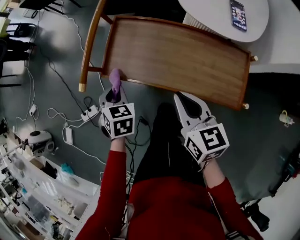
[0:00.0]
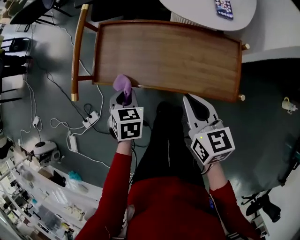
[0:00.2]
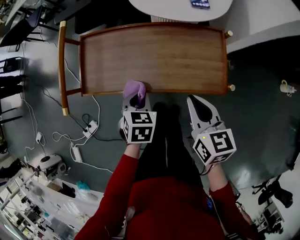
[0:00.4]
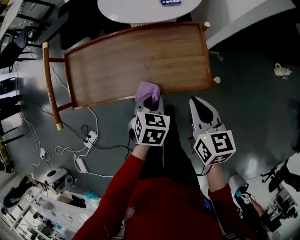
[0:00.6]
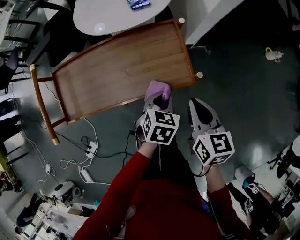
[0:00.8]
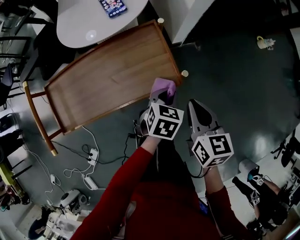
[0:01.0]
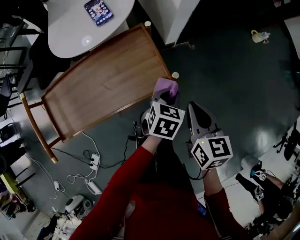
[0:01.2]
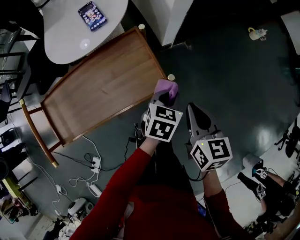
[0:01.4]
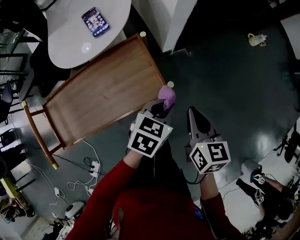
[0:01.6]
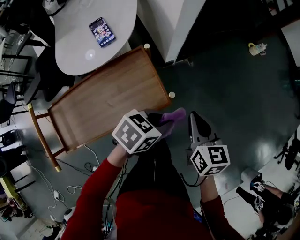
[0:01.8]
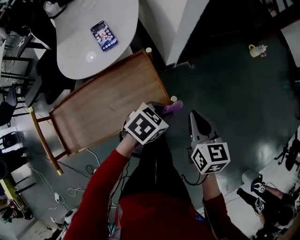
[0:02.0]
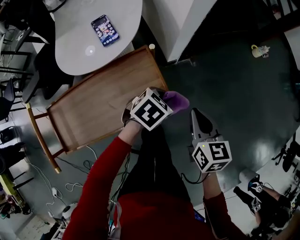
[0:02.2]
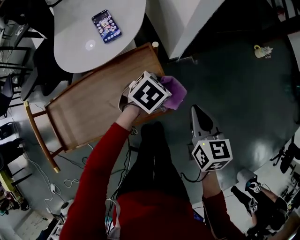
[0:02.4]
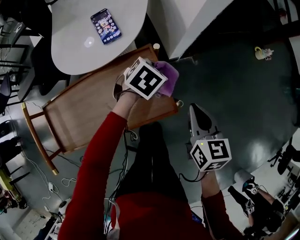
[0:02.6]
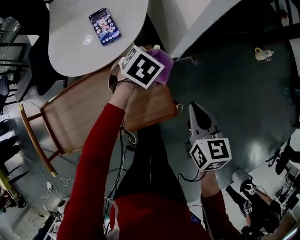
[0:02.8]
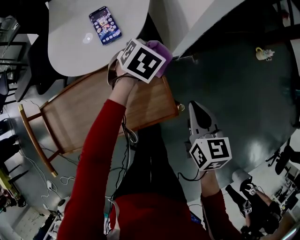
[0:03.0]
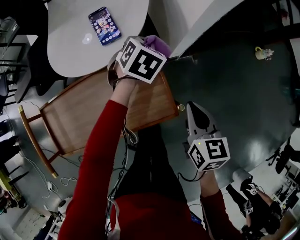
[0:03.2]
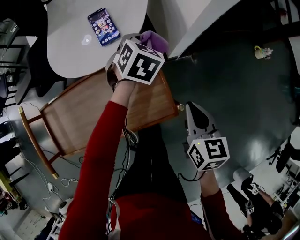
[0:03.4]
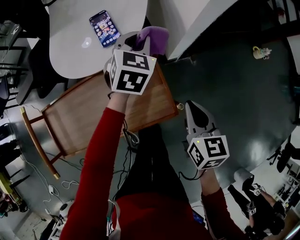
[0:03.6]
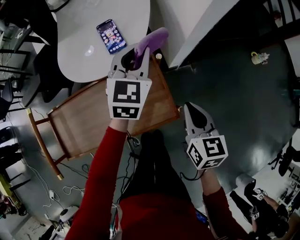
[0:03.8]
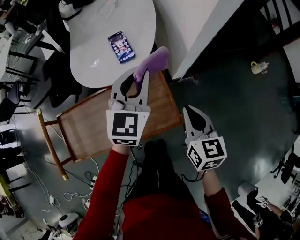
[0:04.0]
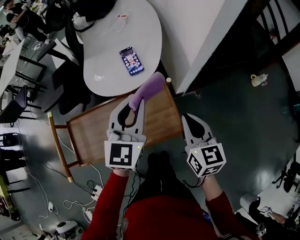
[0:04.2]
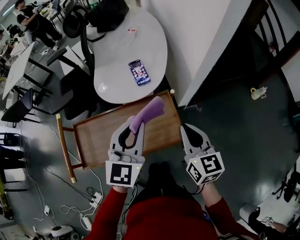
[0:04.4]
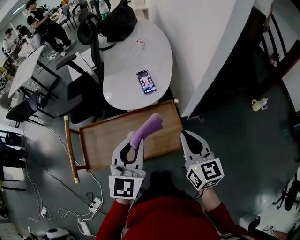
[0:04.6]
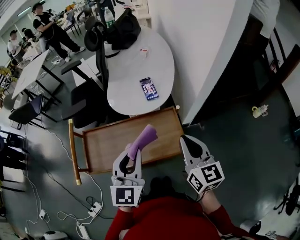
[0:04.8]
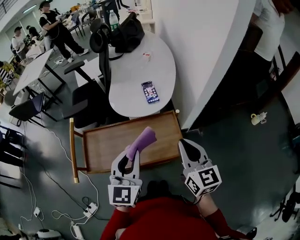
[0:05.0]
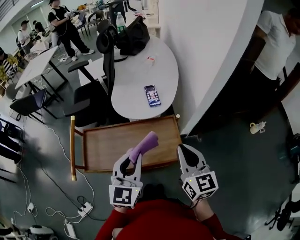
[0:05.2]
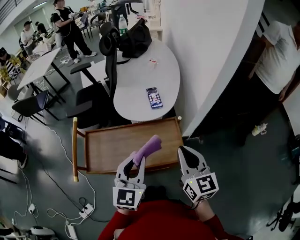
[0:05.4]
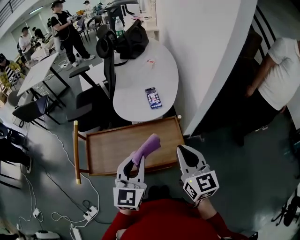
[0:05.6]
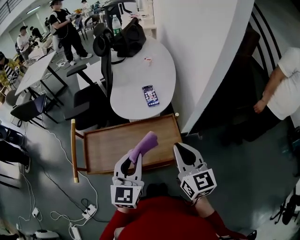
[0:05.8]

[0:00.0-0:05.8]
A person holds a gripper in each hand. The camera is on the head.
0:00.0 to 0:01.4: The left gripper moves about 50 cm, and swivels some 70 degrees; the right gripper ends up about 35 cm from where it was, and swivels about 50 degrees.
0:01.4 to 0:02.8: The right gripper ends up about 10 cm from where it was, while the left gripper changes place by about 25 cm, and changes its angle by approximately 20 degrees.
0:02.8 to 0:04.4: The left gripper goes about 35 cm upward, backward and to the left, and angles its fingers upward, by about 60 degrees; the right gripper heads upward and to the left, covering about 15 cm, and turns by approximately 20 degrees.
0:04.4 to 0:05.8: The right gripper moves upward, approximately 5 cm; the left gripper heads backward and to the left, covering about 10 cm.

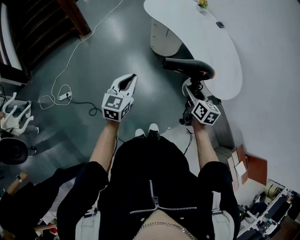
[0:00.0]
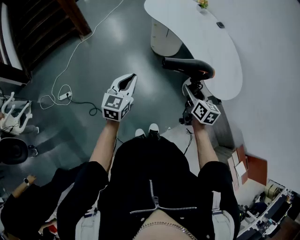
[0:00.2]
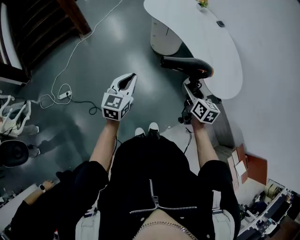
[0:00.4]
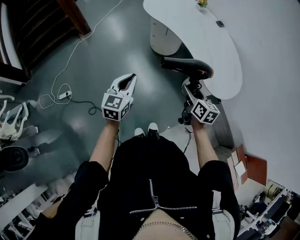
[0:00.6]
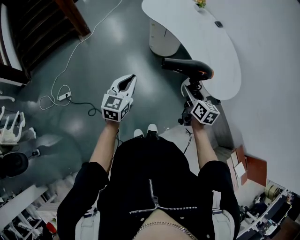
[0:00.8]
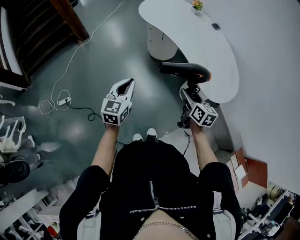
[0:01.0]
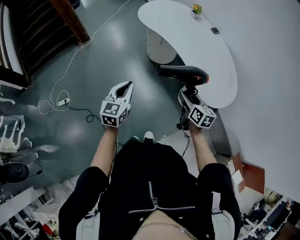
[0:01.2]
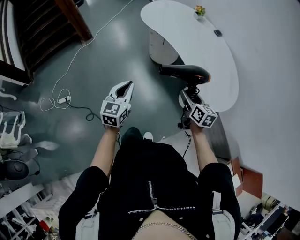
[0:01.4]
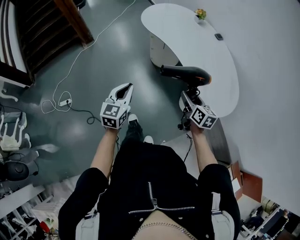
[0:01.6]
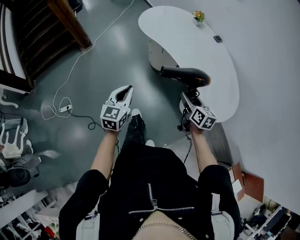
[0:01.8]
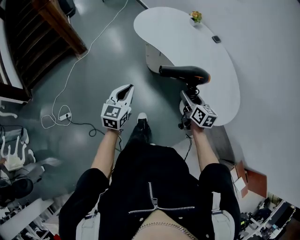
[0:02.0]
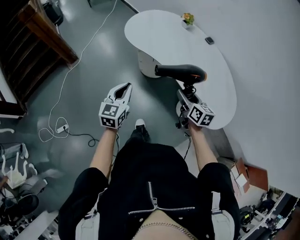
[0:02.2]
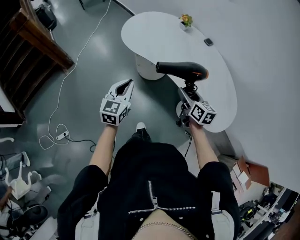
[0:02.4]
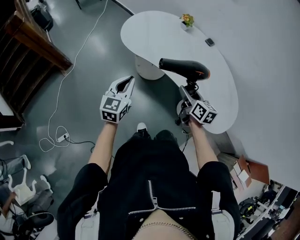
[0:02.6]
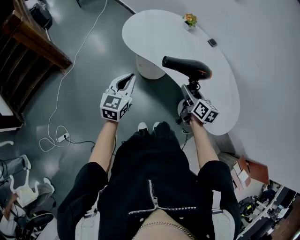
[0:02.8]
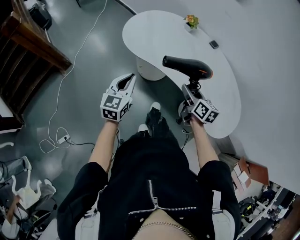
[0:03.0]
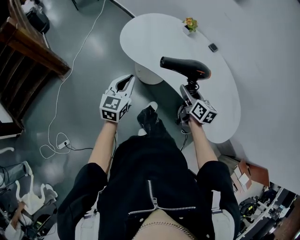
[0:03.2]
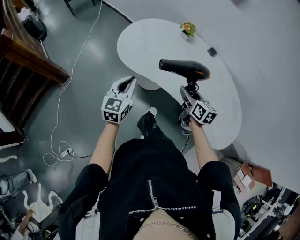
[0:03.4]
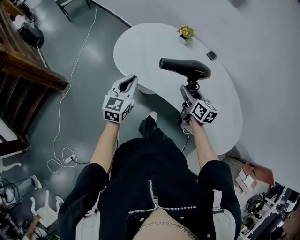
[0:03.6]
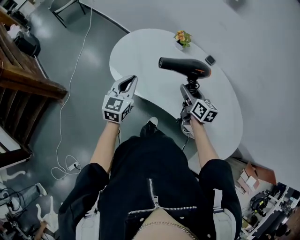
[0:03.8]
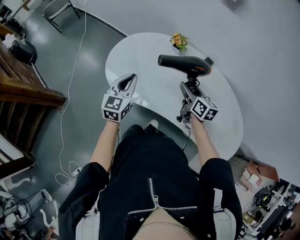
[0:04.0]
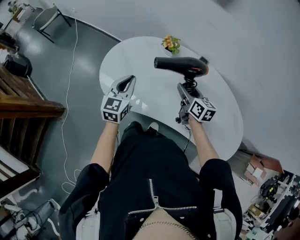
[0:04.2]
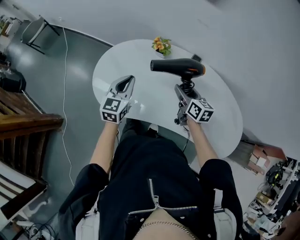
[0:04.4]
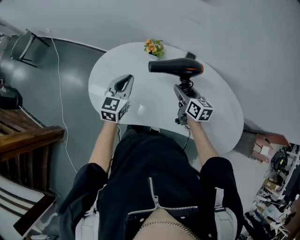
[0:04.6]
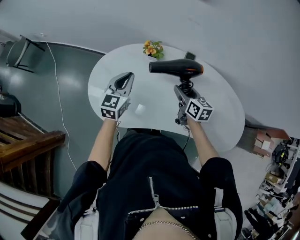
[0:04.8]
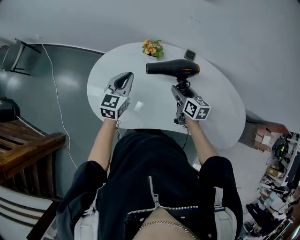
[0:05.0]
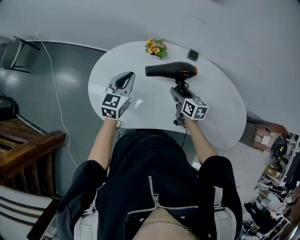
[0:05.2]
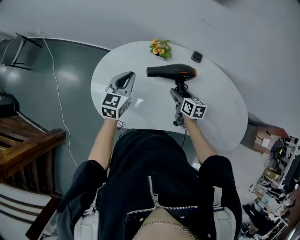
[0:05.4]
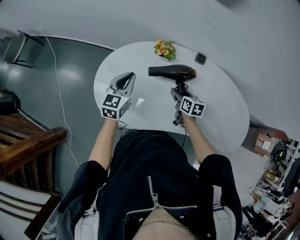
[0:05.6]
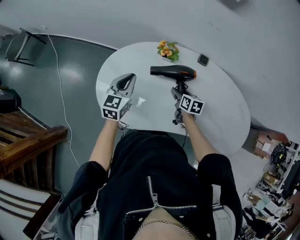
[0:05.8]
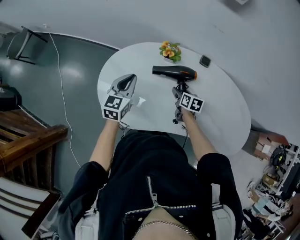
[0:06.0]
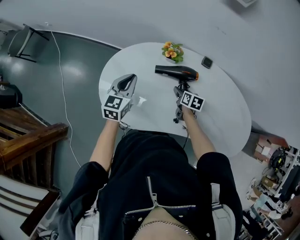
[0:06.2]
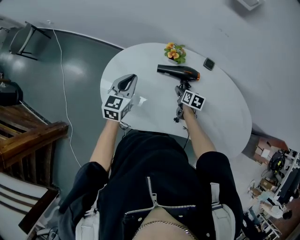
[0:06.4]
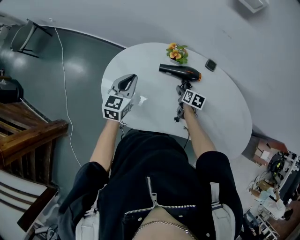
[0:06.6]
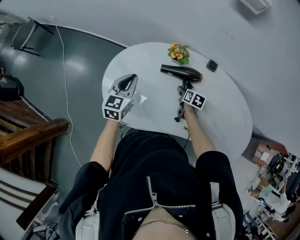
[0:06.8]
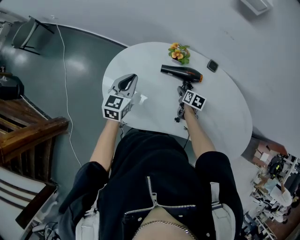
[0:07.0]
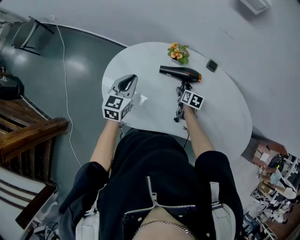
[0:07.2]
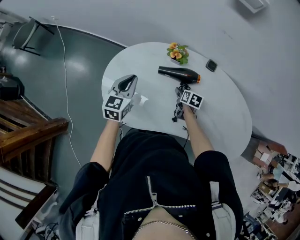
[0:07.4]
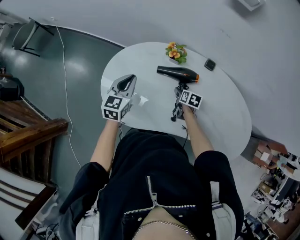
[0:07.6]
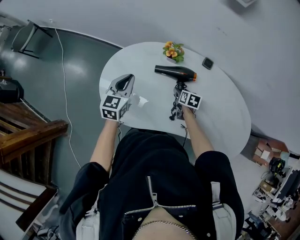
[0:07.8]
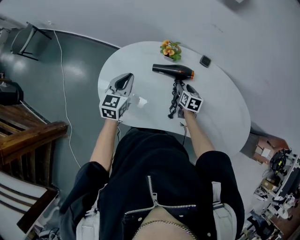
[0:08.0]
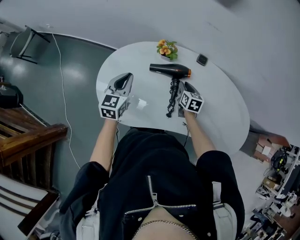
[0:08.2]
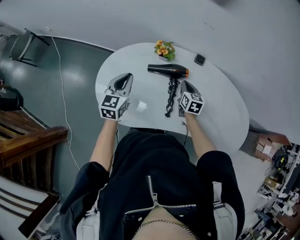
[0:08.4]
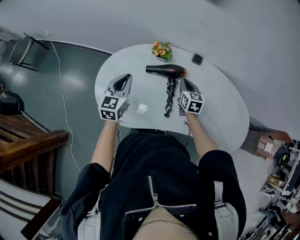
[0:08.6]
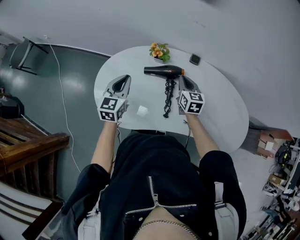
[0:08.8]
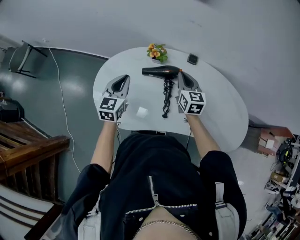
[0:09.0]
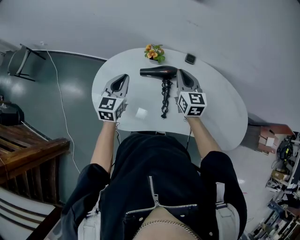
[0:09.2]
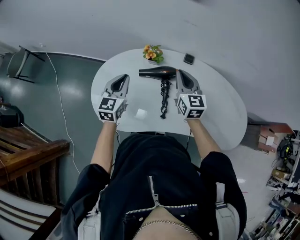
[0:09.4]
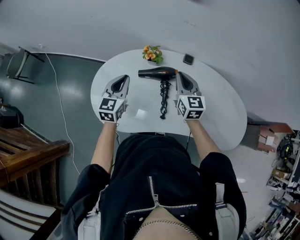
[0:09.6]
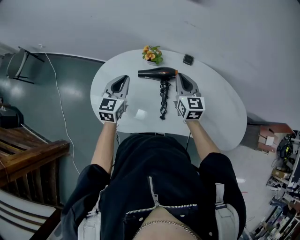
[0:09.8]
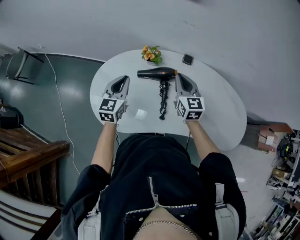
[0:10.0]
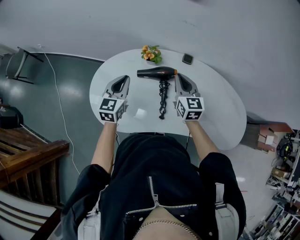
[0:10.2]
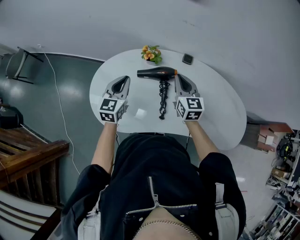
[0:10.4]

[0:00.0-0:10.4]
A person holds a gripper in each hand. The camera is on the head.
0:00.0 to 0:01.4: The right gripper goes about 10 cm forward and to the right; the left gripper changes place by about 5 cm.
0:01.4 to 0:03.0: Both grippers travel together forward, roughly 30 cm.
0:03.0 to 0:04.4: The grippers both shift forward by some 35 cm. The left gripper rotates about 20 degrees.
0:04.4 to 0:06.0: The right gripper travels downward by approximately 15 cm, and rotates approximately 30 degrees. The left gripper shifts roughly 10 cm forward and to the left.
0:06.0 to 0:07.4: The grippers stay close to where they were, moving slightly.
0:07.4 to 0:09.0: The right gripper is displaced upward by about 25 cm, points its fingers about 40 degrees further upward, and closes its fingers; the left gripper changes place by roughly 5 cm.
0:09.0 to 0:10.4: There are only small adjustments of the grippers.

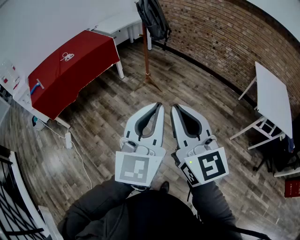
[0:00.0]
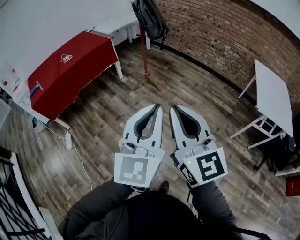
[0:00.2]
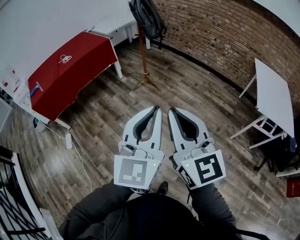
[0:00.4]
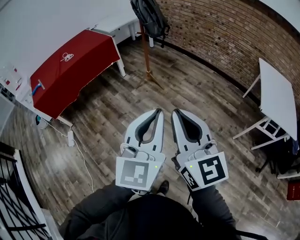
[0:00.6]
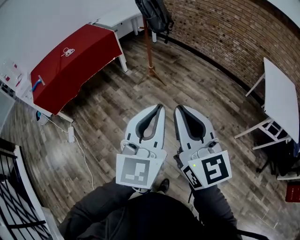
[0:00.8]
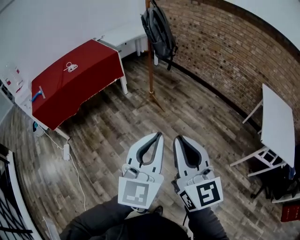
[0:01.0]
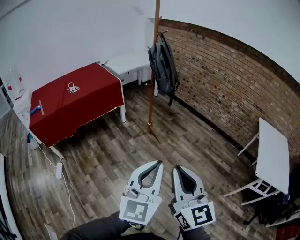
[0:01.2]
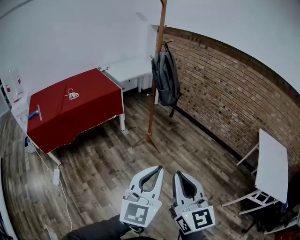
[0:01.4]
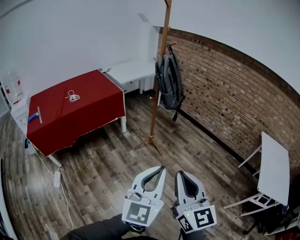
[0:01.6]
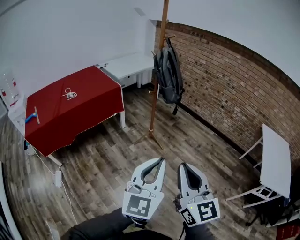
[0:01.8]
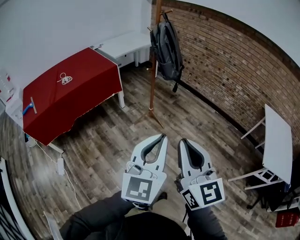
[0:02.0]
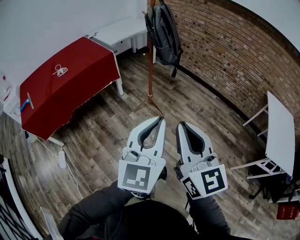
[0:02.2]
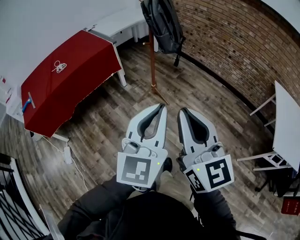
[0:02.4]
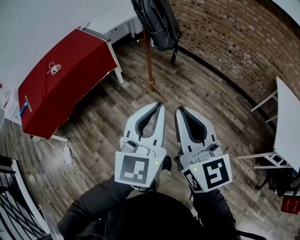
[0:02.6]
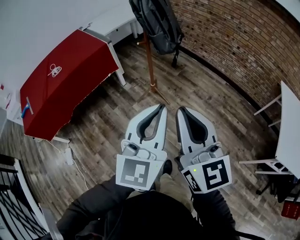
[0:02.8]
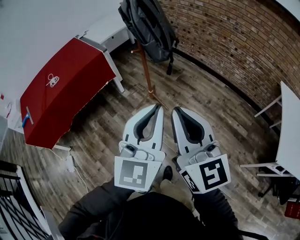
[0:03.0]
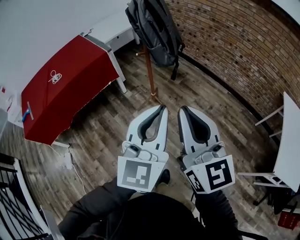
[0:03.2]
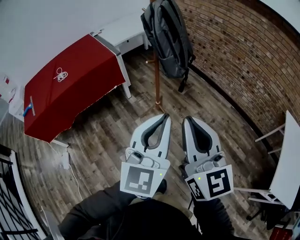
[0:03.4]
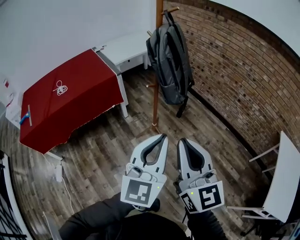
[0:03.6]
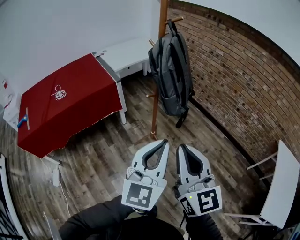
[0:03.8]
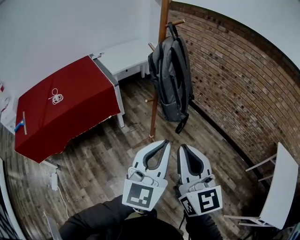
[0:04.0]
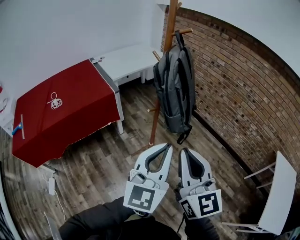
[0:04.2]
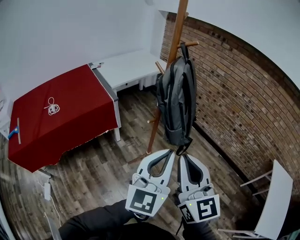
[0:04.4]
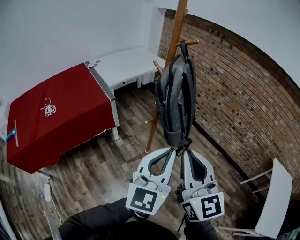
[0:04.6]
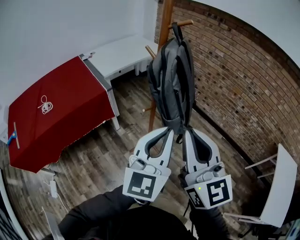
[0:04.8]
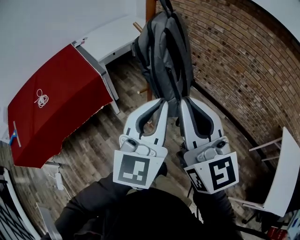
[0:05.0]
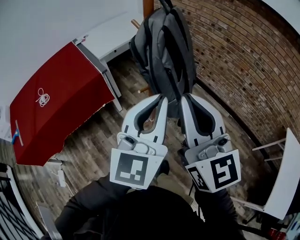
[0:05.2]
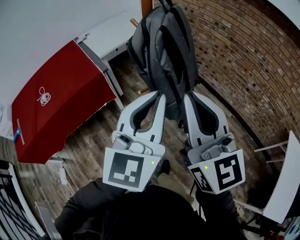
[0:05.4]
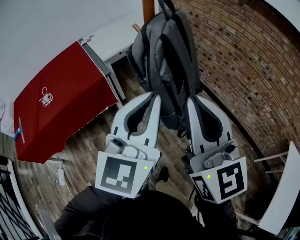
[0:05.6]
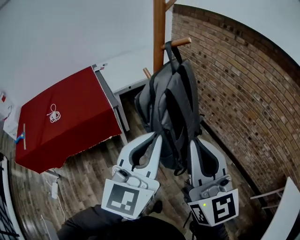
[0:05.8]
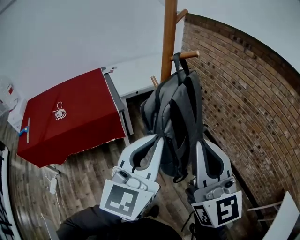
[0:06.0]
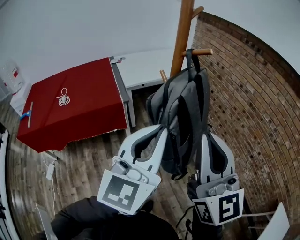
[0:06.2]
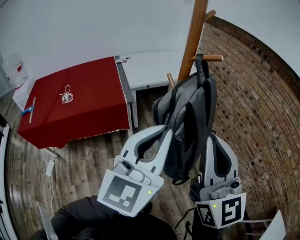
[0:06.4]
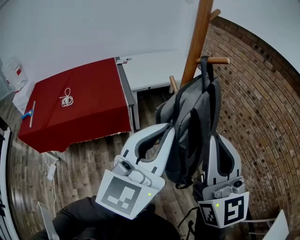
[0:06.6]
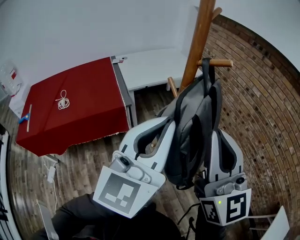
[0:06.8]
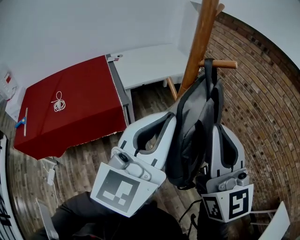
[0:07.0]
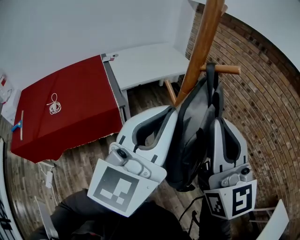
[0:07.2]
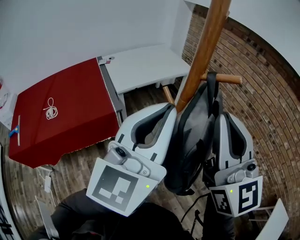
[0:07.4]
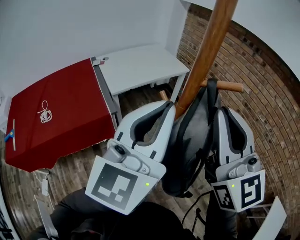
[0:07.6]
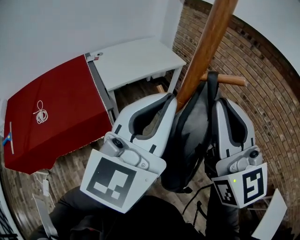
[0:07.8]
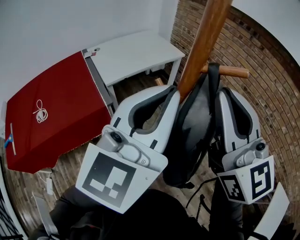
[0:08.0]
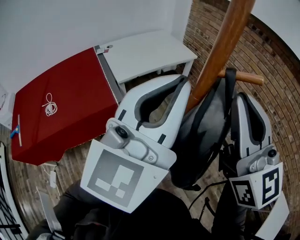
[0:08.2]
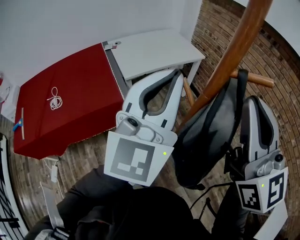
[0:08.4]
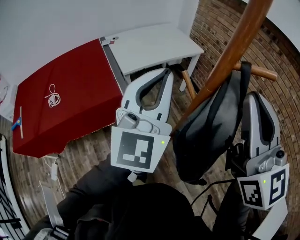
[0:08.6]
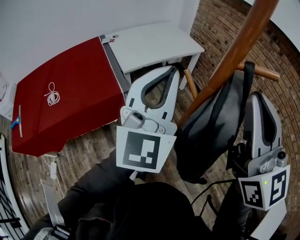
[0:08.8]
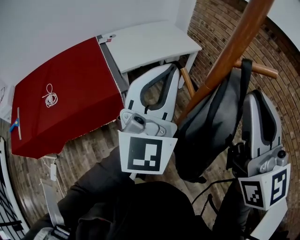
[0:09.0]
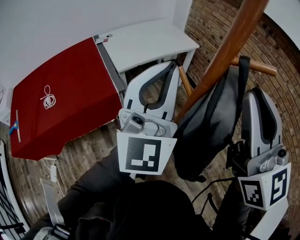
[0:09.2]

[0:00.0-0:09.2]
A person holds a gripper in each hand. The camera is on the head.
0:00.0 to 0:01.6: Both grippers travel together forward, approximately 20 cm.
0:01.6 to 0:03.0: The two grippers go roughly 20 cm forward.
0:03.0 to 0:04.6: Both grippers move forward, about 25 cm.
0:04.6 to 0:06.2: The left gripper travels forward and upward by about 15 cm, while the right gripper heads forward, upward and to the right, covering about 20 cm.
0:06.2 to 0:07.6: The right gripper shifts approximately 20 cm forward and upward. Meanwhile the left gripper moves forward, roughly 15 cm.
0:07.6 to 0:09.2: The left gripper goes approximately 5 cm forward, and swivels roughly 20 degrees.
